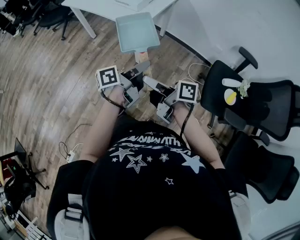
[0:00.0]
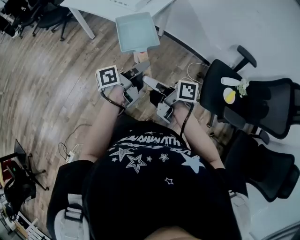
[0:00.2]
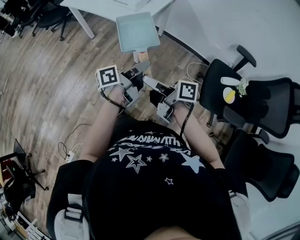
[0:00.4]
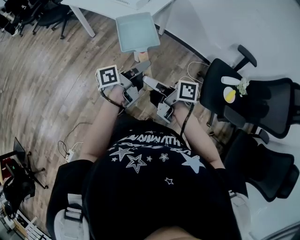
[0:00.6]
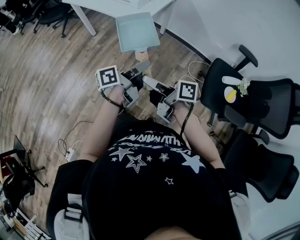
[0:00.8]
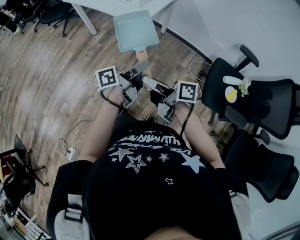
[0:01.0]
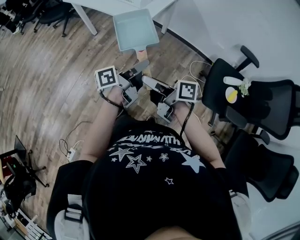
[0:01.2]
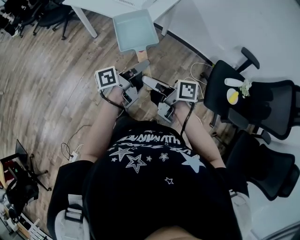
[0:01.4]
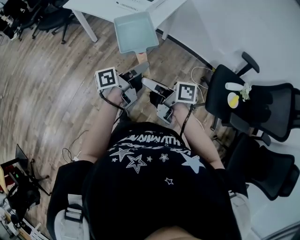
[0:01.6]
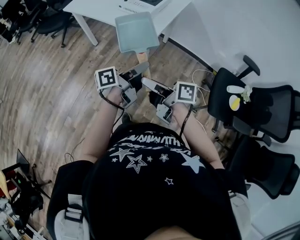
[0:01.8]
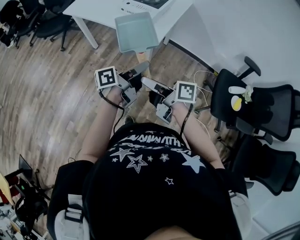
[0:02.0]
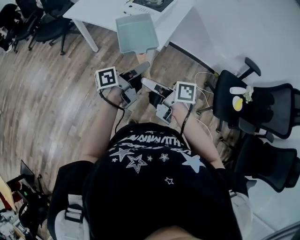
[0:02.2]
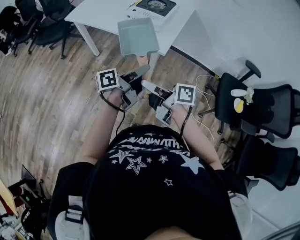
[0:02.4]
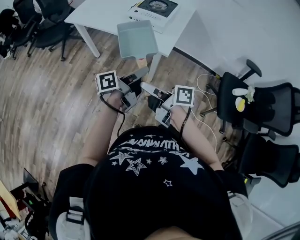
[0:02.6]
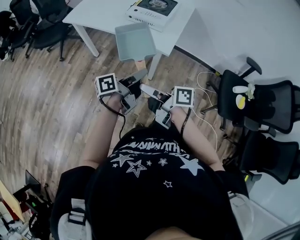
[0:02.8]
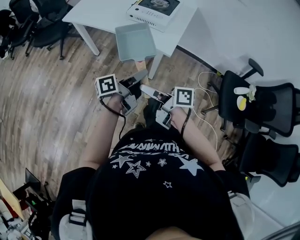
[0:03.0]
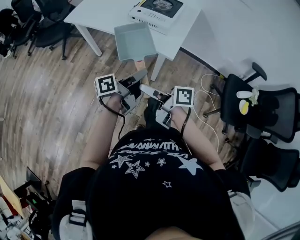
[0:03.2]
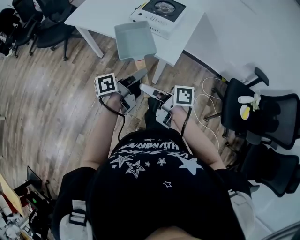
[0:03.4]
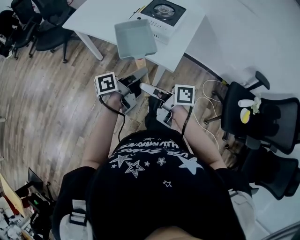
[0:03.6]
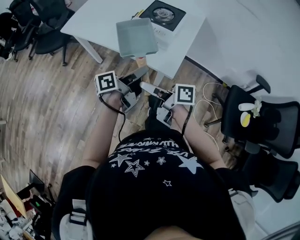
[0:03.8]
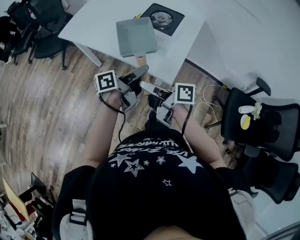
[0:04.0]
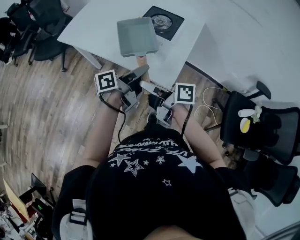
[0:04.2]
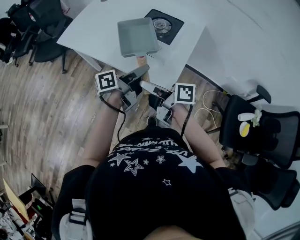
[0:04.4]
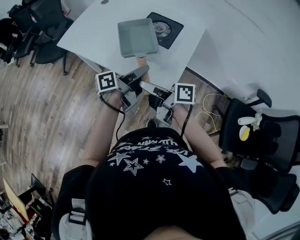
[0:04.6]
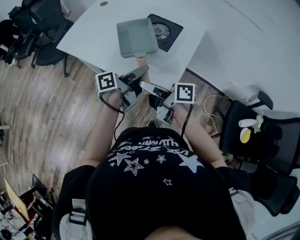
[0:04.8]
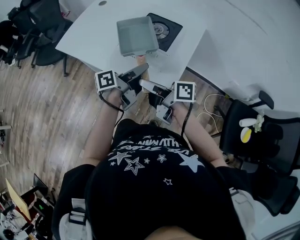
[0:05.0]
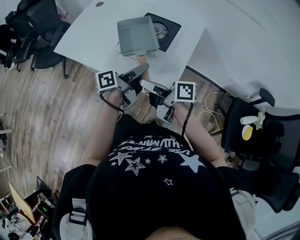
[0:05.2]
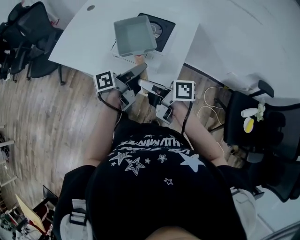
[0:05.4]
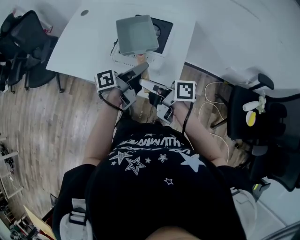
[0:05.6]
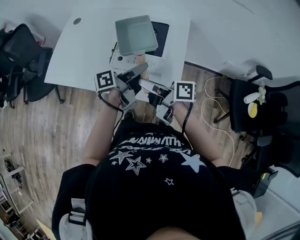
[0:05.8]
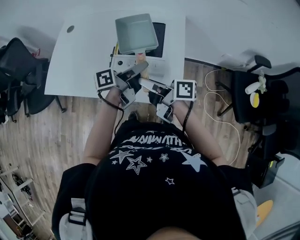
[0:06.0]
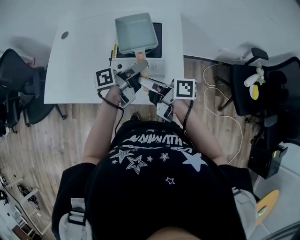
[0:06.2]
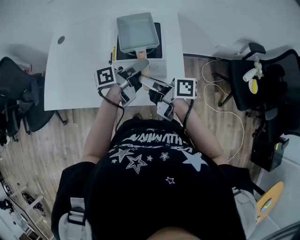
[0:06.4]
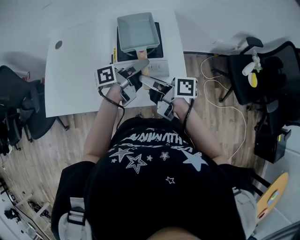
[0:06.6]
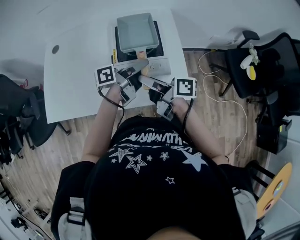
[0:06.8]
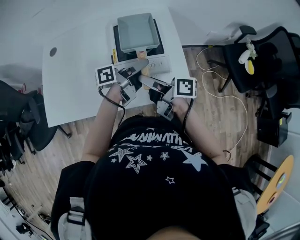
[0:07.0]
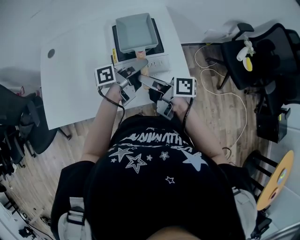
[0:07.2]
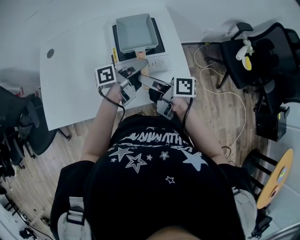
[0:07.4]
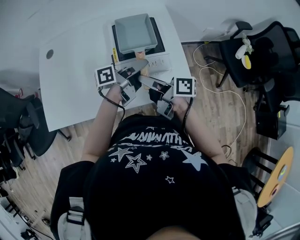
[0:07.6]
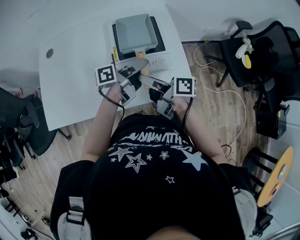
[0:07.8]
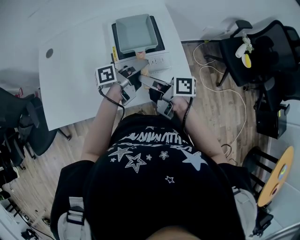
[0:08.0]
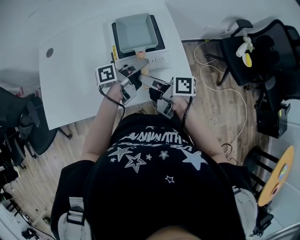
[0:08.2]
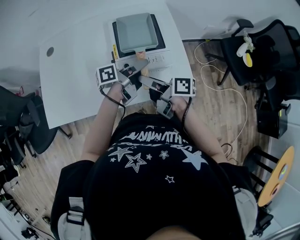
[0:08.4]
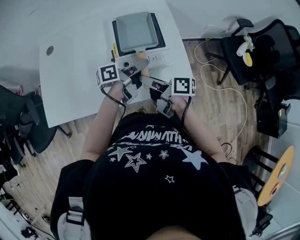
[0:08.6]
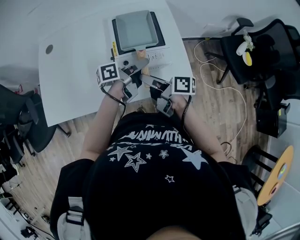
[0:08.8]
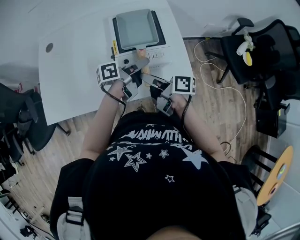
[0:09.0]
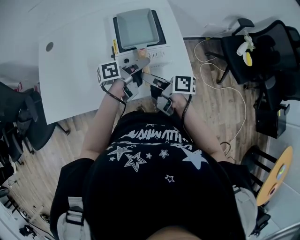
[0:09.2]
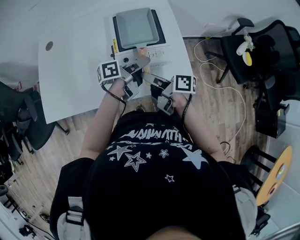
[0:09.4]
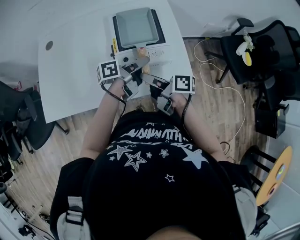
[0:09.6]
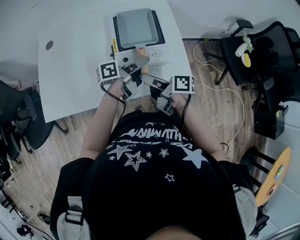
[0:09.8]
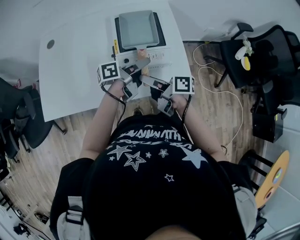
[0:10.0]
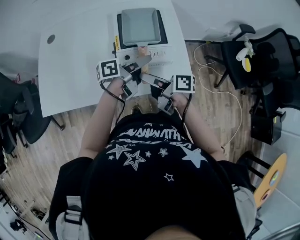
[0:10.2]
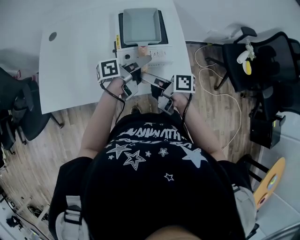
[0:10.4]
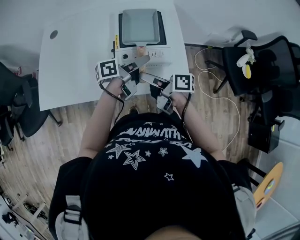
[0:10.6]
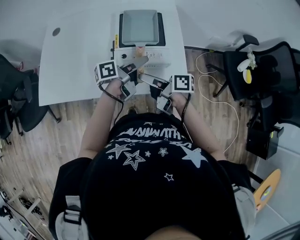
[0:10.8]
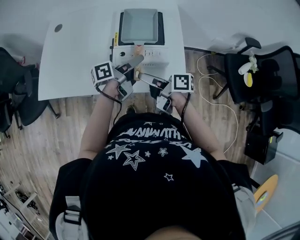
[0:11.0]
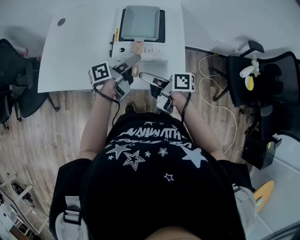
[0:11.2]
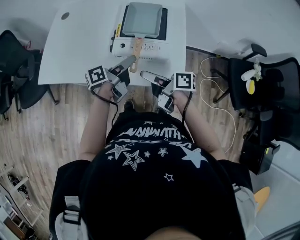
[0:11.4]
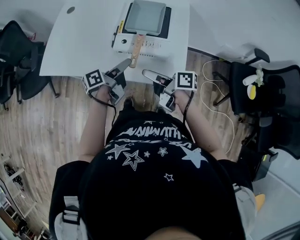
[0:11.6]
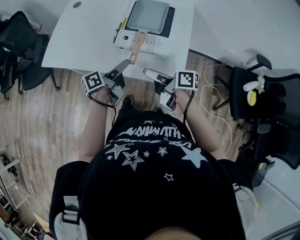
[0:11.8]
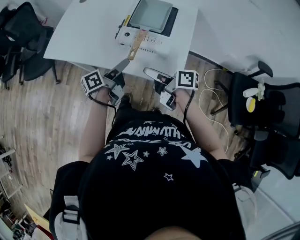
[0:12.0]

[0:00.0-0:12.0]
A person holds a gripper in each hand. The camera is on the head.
0:00.0 to 0:01.6: The right gripper ends up about 10 cm from where it was.
0:01.6 to 0:03.0: The right gripper moves some 20 cm.
0:03.0 to 0:04.4: The right gripper changes place by approximately 25 cm.
0:04.4 to 0:06.0: The right gripper moves about 15 cm, and swivels roughly 20 degrees.
0:06.0 to 0:07.6: The right gripper moves roughly 10 cm, and changes its angle by some 20 degrees.
0:09.0 to 0:10.4: The right gripper opens.
0:10.4 to 0:12.0: The right gripper changes place by about 10 cm, and rotates approximately 20 degrees.

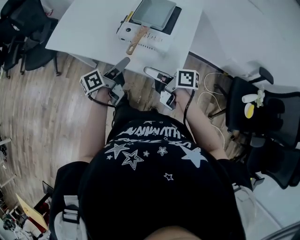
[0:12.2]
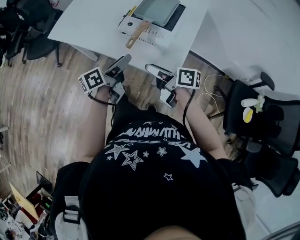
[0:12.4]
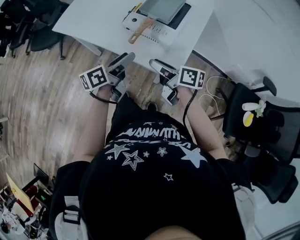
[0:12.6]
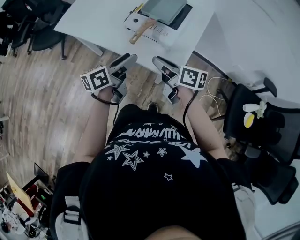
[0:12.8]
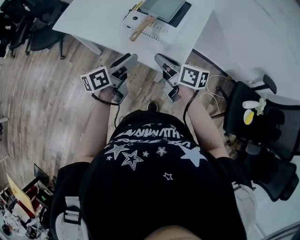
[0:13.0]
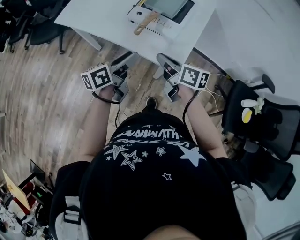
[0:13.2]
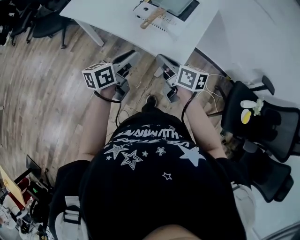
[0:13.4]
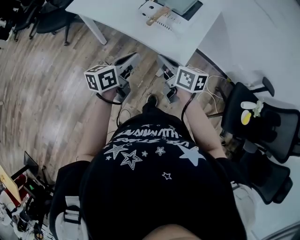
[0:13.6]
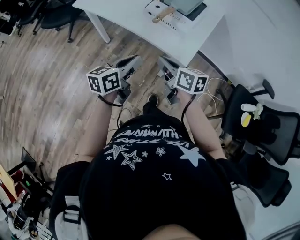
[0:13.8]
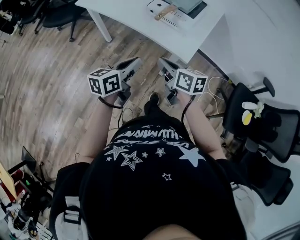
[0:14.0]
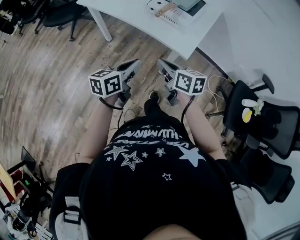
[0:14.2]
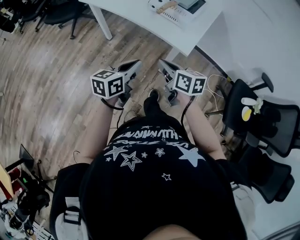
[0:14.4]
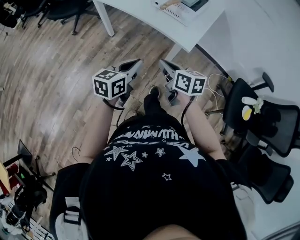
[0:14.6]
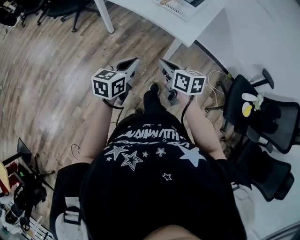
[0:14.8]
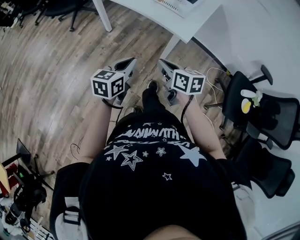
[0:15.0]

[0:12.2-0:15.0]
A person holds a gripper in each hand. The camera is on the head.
0:12.2 to 0:13.6: The right gripper shifts by about 10 cm, swivels about 30 degrees, and closes.
0:13.6 to 0:15.0: The right gripper ends up about 20 cm from where it was.

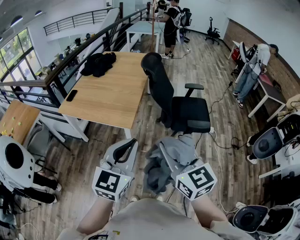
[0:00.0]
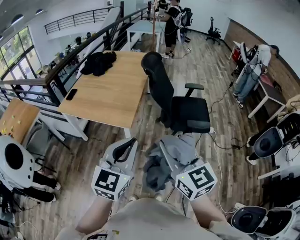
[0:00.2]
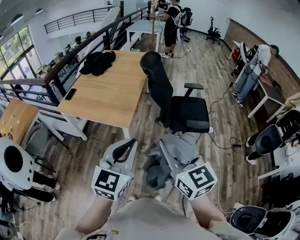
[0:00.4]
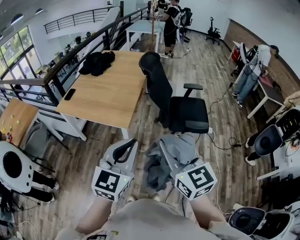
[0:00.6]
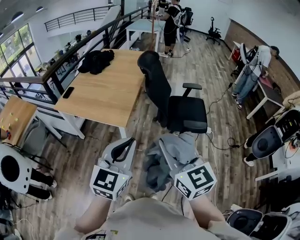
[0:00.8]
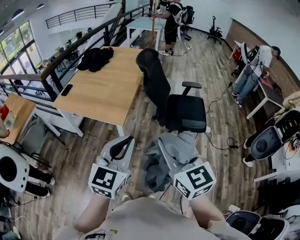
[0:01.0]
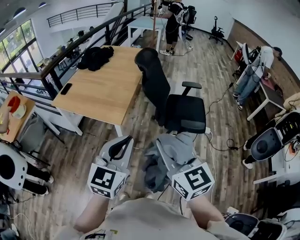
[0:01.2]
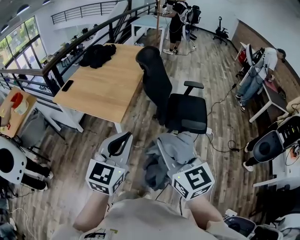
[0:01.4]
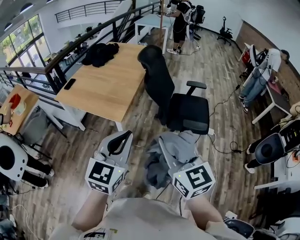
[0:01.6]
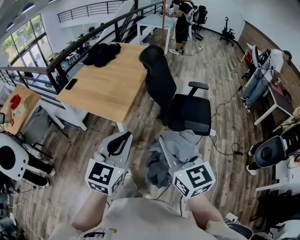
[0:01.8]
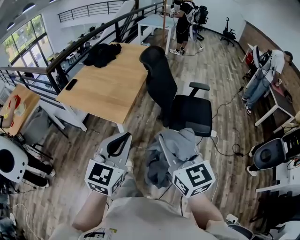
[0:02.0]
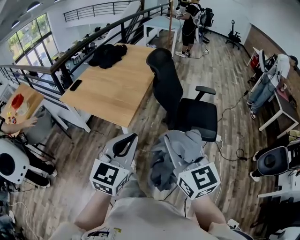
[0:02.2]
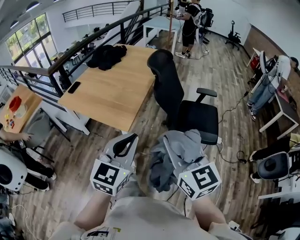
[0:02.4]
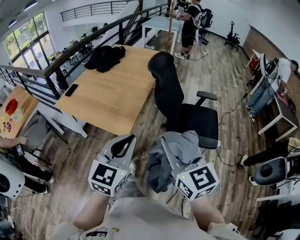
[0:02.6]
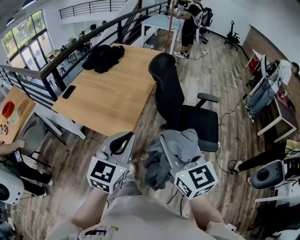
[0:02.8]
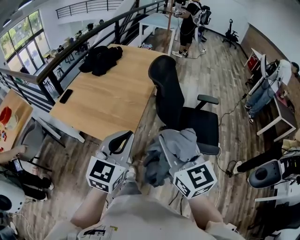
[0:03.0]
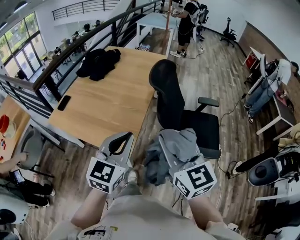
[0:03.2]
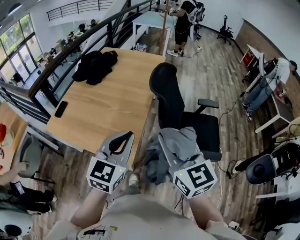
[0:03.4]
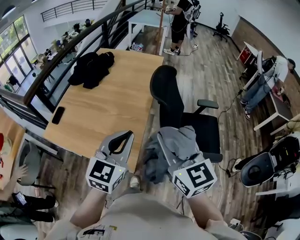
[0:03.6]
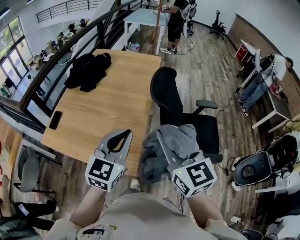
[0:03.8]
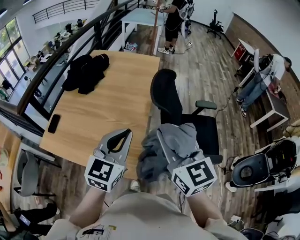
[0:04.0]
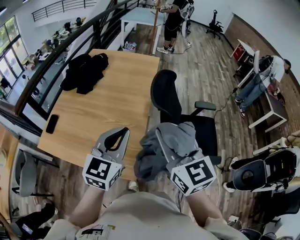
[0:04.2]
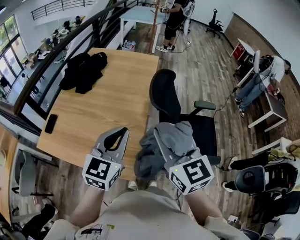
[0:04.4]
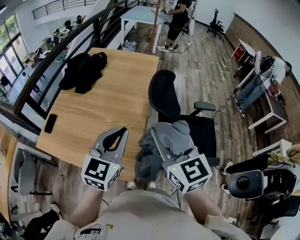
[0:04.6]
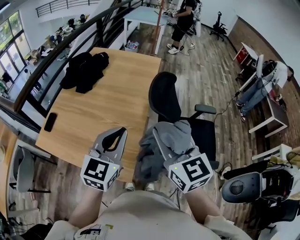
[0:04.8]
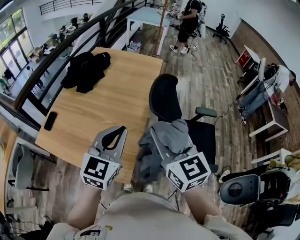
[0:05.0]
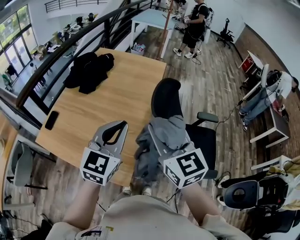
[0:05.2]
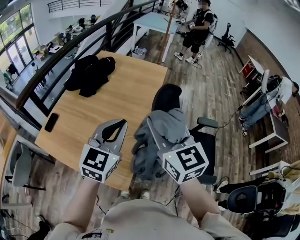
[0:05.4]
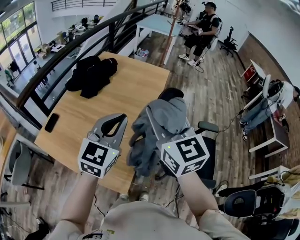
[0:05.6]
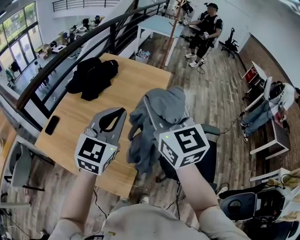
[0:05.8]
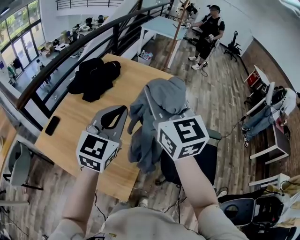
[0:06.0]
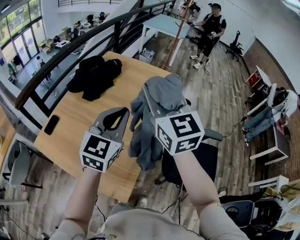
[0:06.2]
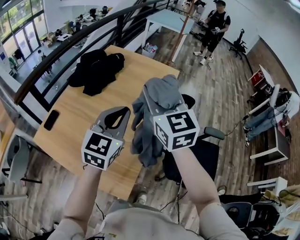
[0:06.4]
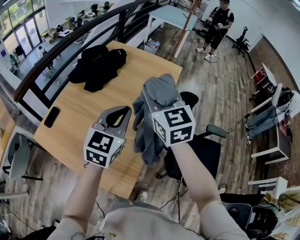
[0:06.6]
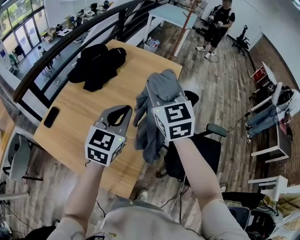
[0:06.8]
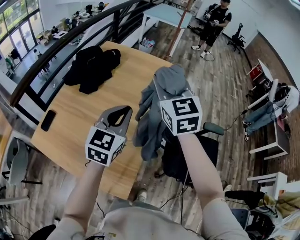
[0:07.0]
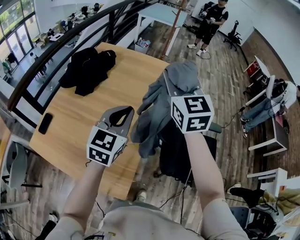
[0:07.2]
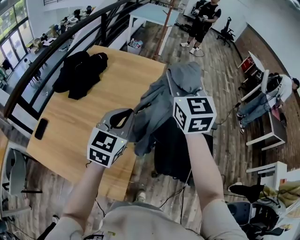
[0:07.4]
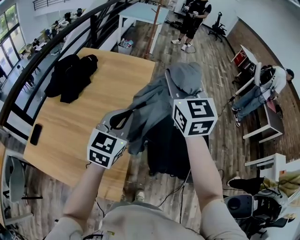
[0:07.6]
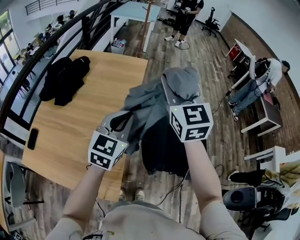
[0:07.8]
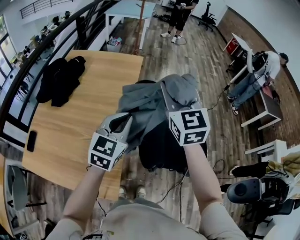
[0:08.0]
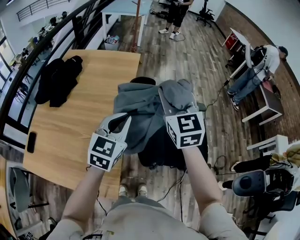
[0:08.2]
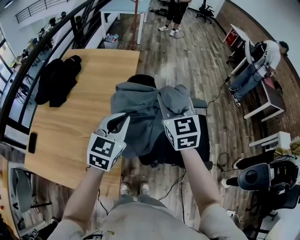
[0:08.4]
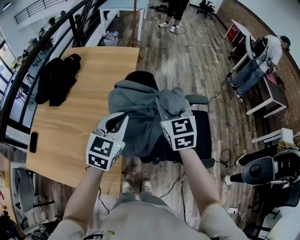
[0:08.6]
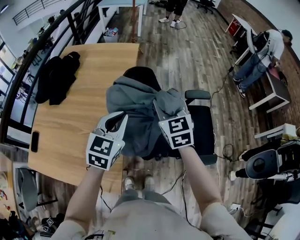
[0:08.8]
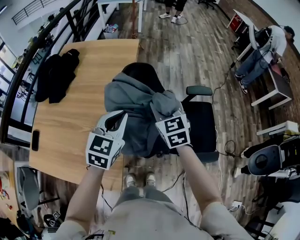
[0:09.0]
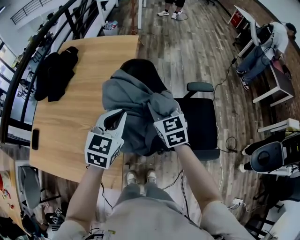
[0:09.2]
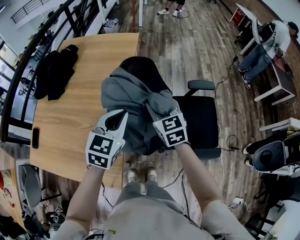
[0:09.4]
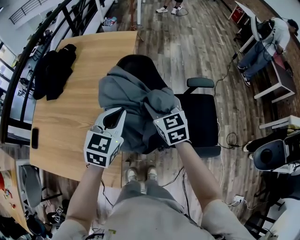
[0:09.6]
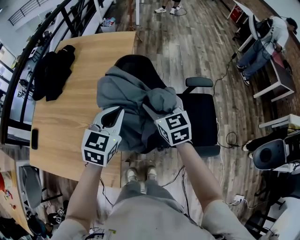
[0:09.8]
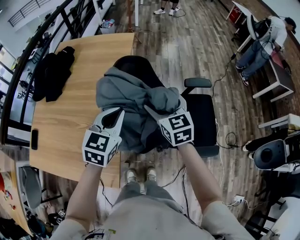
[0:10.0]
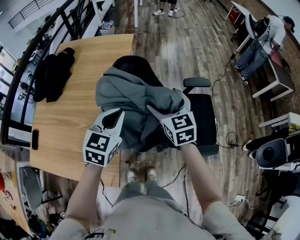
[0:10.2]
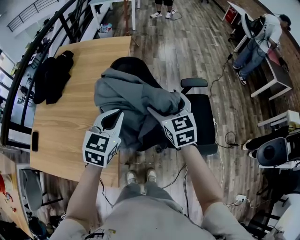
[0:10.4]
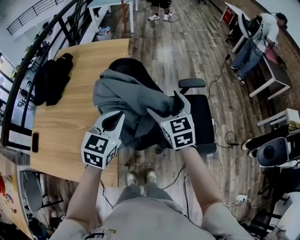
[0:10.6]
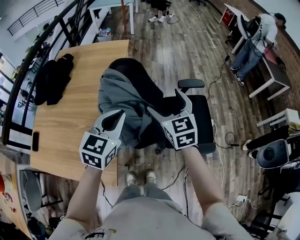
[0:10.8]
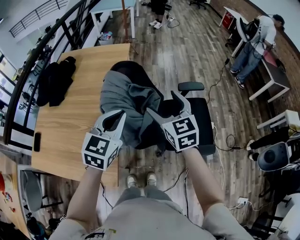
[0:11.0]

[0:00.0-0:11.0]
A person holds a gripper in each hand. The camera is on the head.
0:00.0 to 0:01.6: The two grippers go about 10 cm to the right.
0:01.6 to 0:03.2: The grippers both shift forward by approximately 35 cm.
0:03.2 to 0:04.8: The grippers both shift forward by about 25 cm.
0:04.8 to 0:06.2: Both grippers move forward, some 20 cm.
0:06.2 to 0:07.8: Both grippers travel together to the right, approximately 20 cm. The right gripper turns by some 20 degrees.
0:07.8 to 0:09.4: The right gripper shifts some 30 cm downward, and swivels about 20 degrees; the left gripper goes roughly 15 cm downward and to the right.
0:09.4 to 0:11.0: The right gripper is displaced upward, to the right and backward by some 15 cm, and opens up, while the left gripper goes roughly 10 cm backward, upward and to the right.
